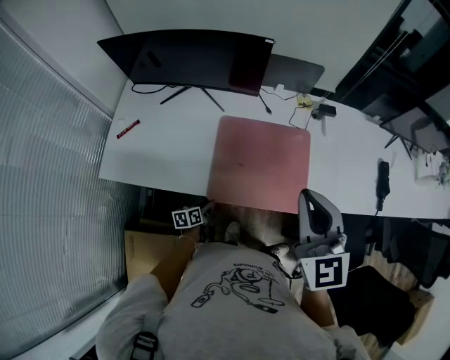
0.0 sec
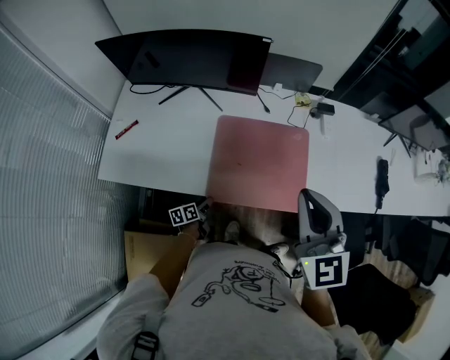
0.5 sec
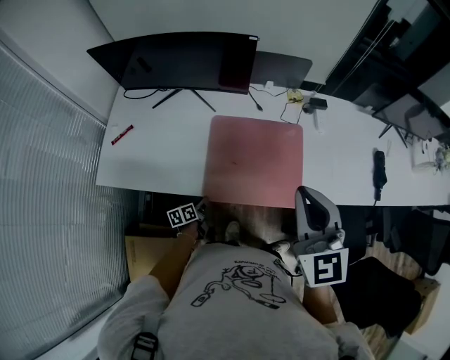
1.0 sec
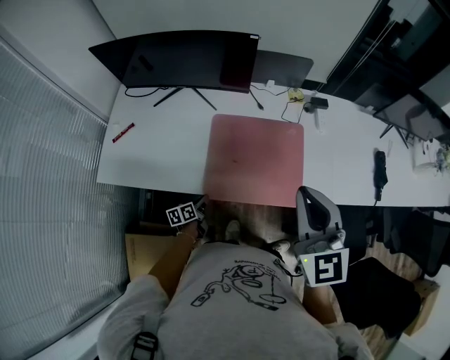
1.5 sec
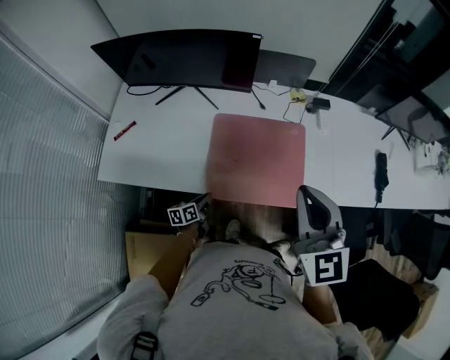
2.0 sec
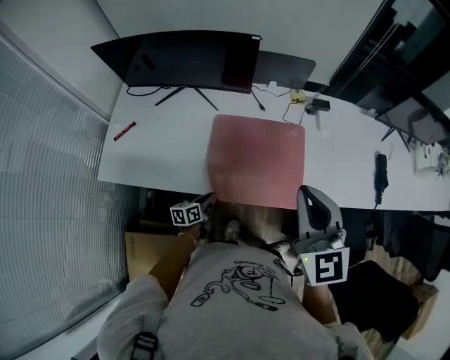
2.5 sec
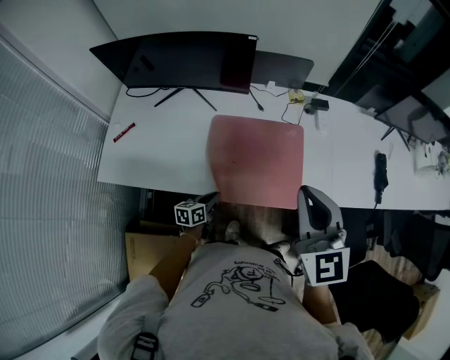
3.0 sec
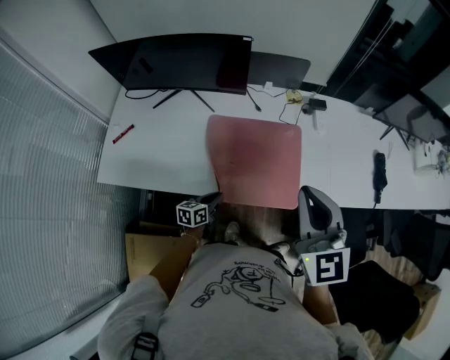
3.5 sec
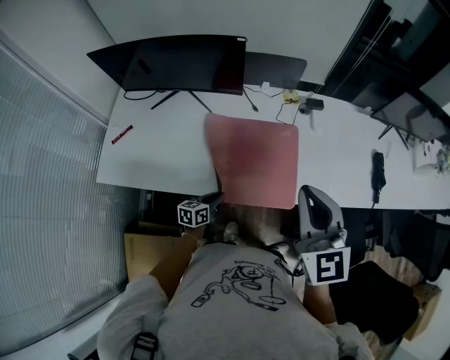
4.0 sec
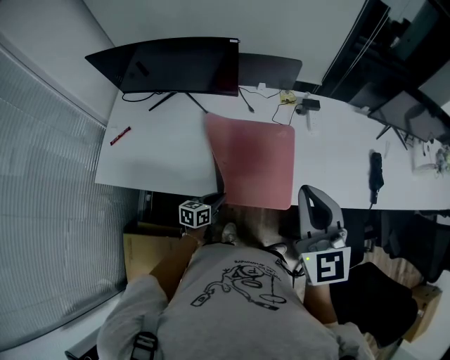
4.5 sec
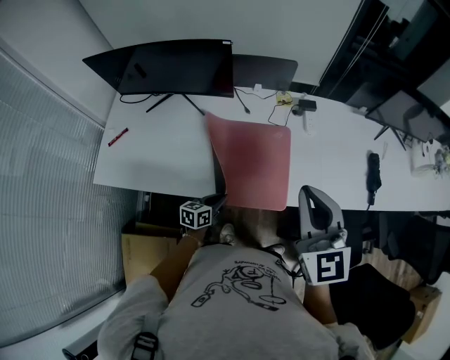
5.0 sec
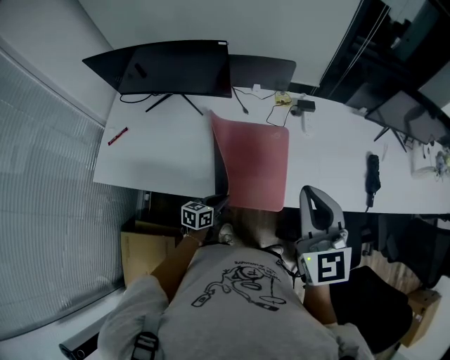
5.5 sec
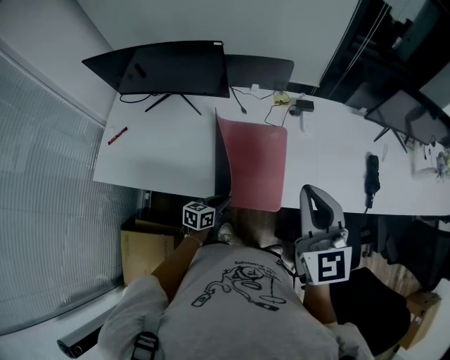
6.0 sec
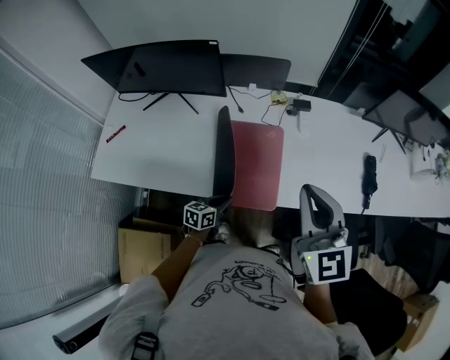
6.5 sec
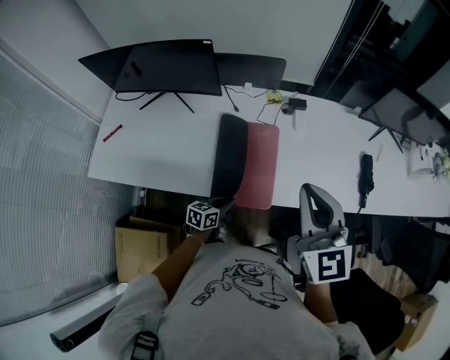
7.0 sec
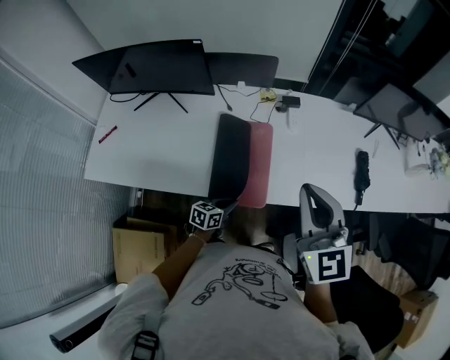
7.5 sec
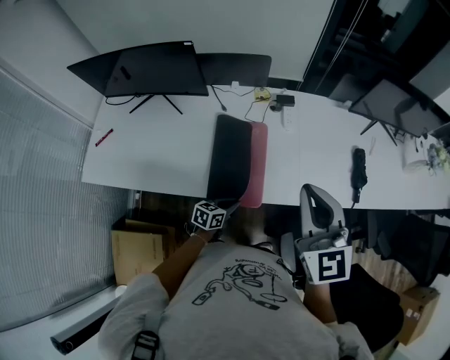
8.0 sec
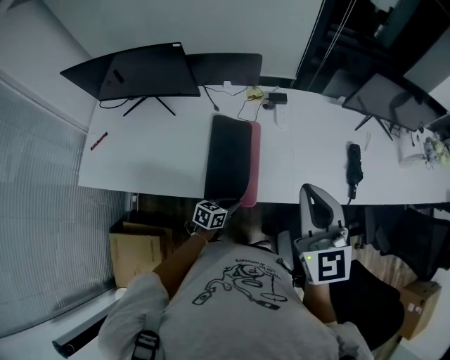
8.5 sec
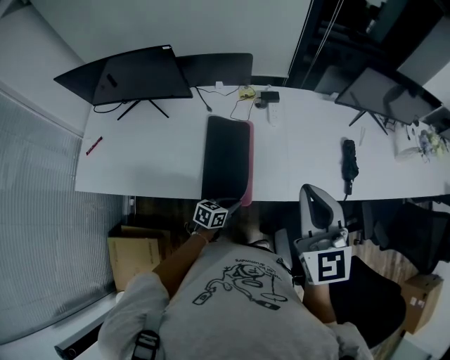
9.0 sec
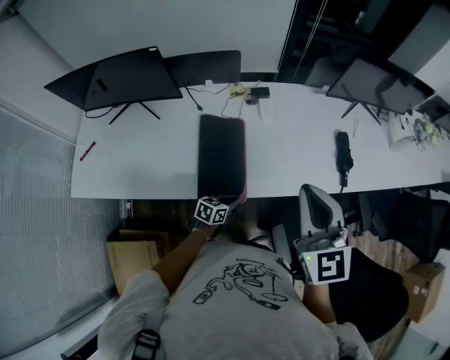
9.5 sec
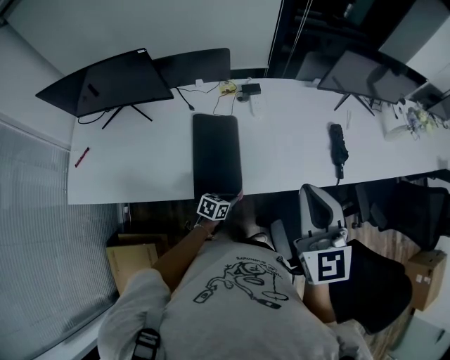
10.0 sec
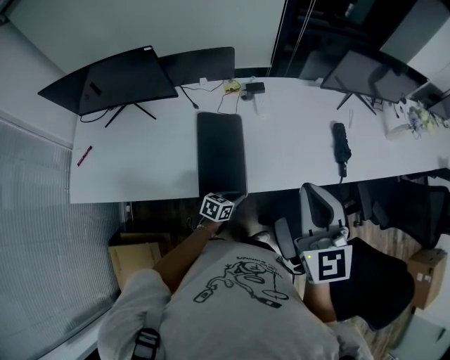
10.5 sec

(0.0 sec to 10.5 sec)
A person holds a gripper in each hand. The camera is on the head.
0.0 sec - 2.0 sec: The left gripper closes its fingers.
2.0 sec - 4.0 sec: The right gripper is displaced to the right by some 5 cm. The left gripper moves to the right and upward, approximately 10 cm.
4.0 sec - 6.5 sec: The grippers both shift to the right by roughly 10 cm.
6.5 sec - 8.5 sec: The left gripper heads to the right, covering about 15 cm, while the right gripper is displaced to the right by roughly 10 cm.

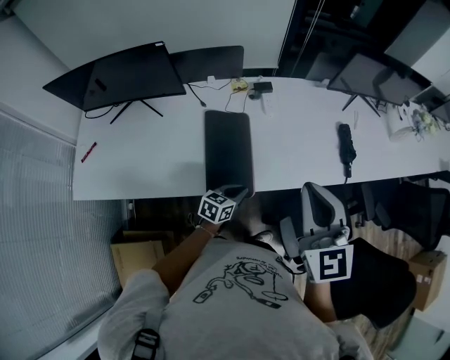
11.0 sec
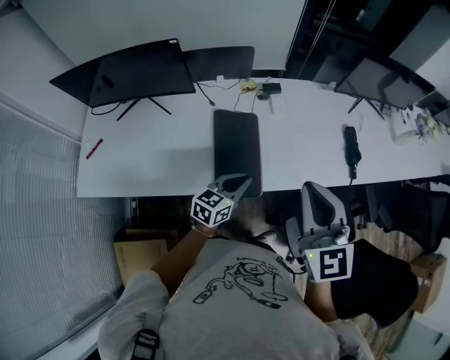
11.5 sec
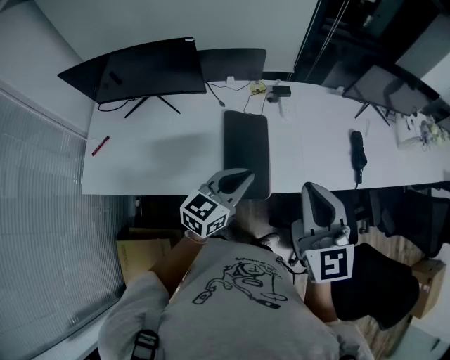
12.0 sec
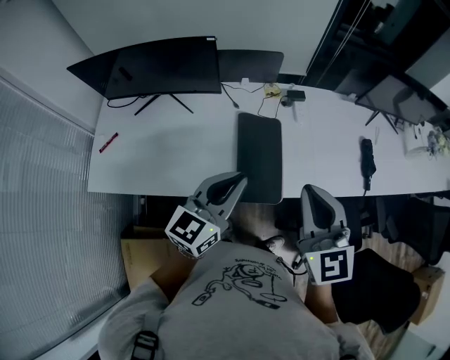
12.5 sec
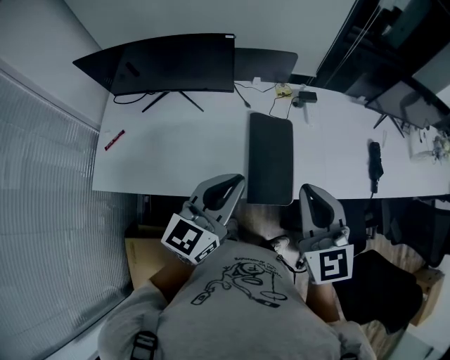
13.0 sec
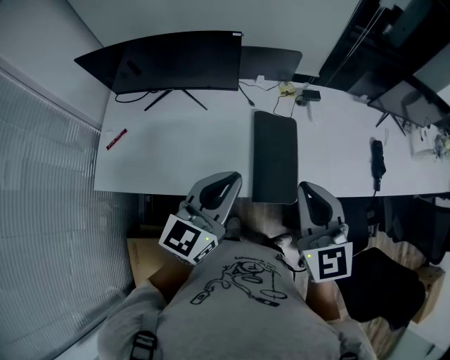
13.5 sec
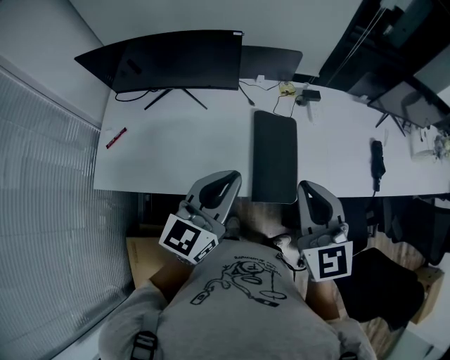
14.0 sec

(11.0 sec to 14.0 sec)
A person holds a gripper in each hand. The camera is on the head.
11.0 sec - 12.5 sec: The right gripper travels to the left by approximately 15 cm; the left gripper moves upward and to the left, about 30 cm, and changes its angle by approximately 40 degrees.
12.5 sec - 14.0 sec: The two grippers go about 10 cm to the left.

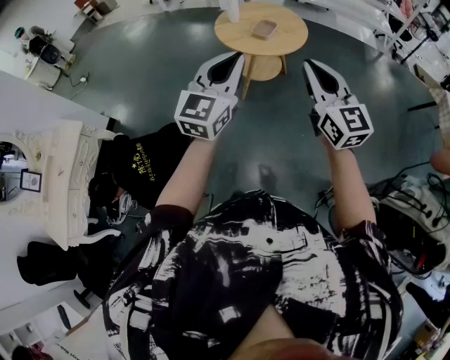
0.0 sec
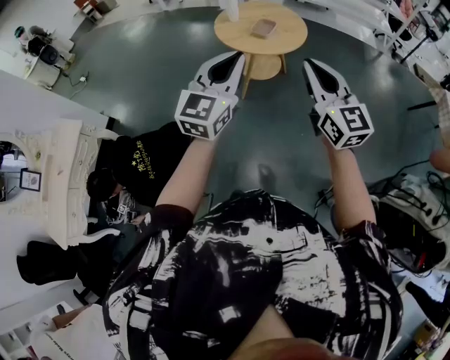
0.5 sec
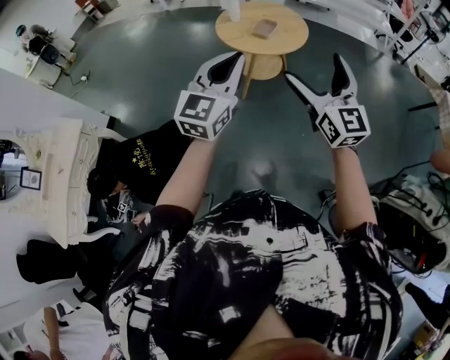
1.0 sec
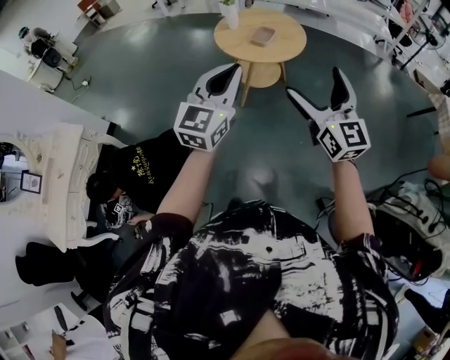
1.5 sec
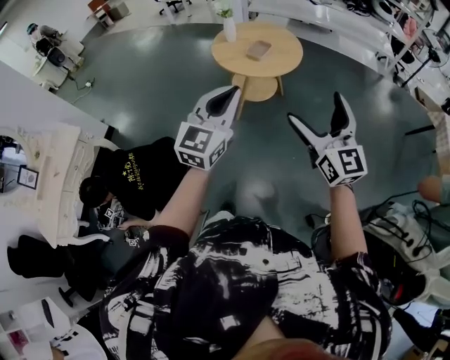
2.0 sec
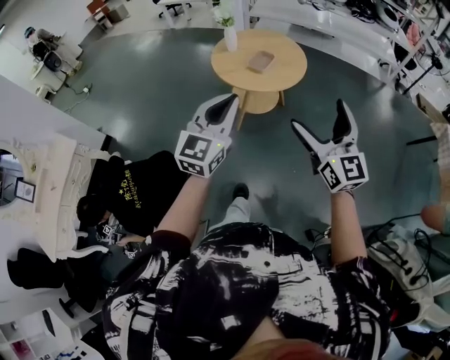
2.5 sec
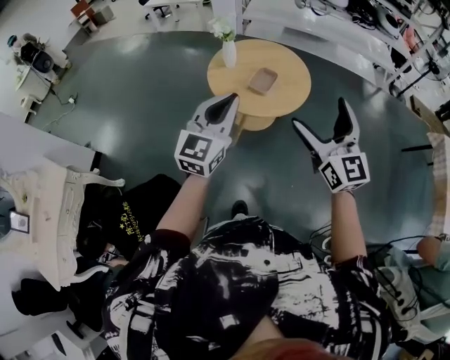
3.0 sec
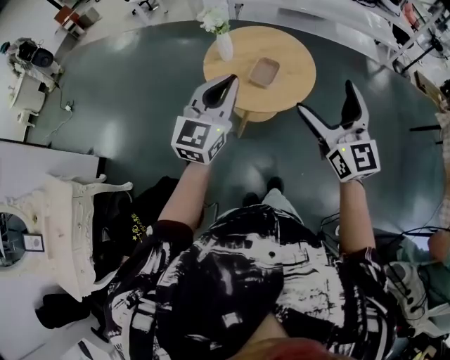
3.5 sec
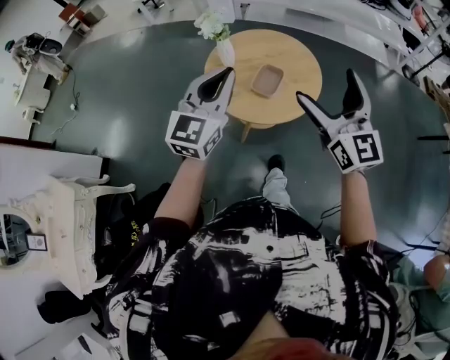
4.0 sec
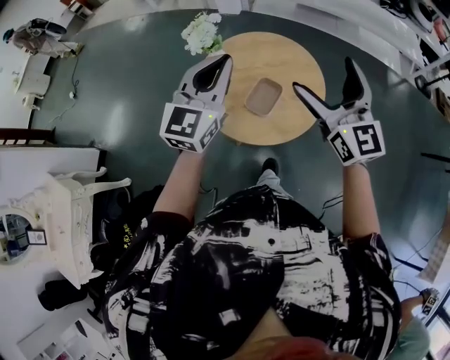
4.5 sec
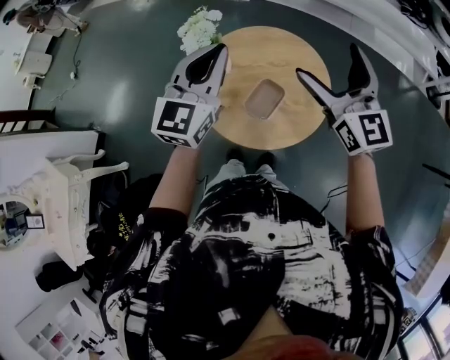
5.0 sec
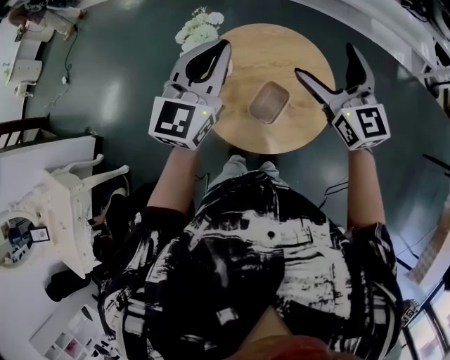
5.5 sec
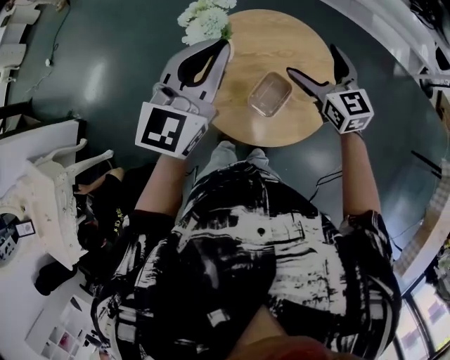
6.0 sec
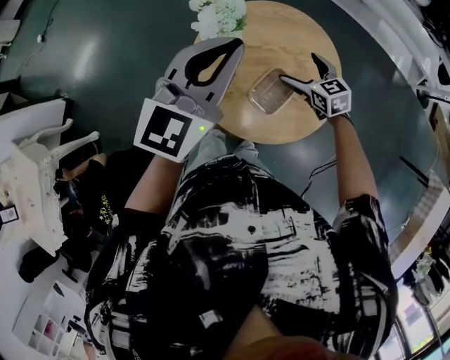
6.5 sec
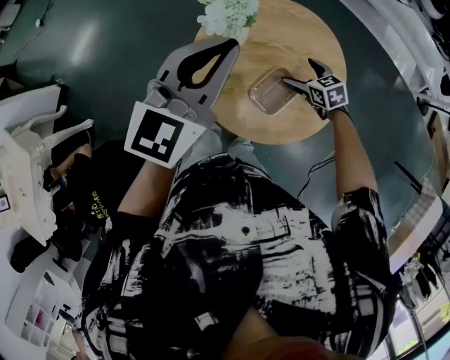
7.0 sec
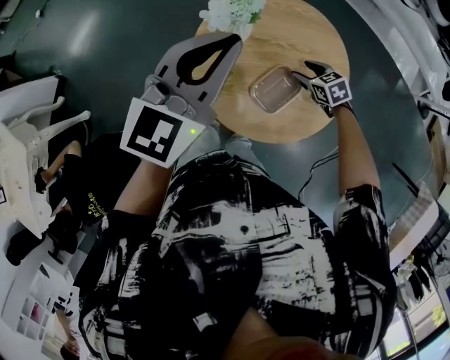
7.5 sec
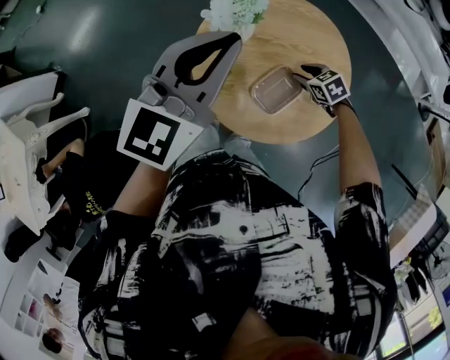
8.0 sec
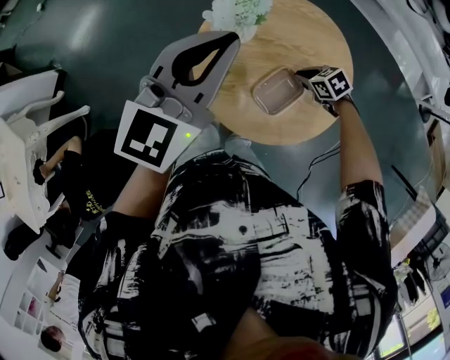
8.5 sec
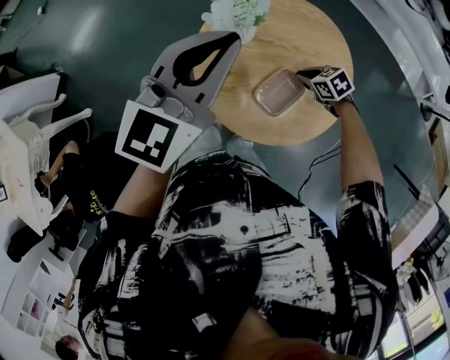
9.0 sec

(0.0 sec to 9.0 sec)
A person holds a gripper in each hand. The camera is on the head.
0.0 sec - 2.0 sec: Both grippers move to the right, roughly 10 cm. The right gripper opens.
2.0 sec - 4.5 sec: The two grippers travel together, forward, roughly 60 cm.
4.5 sec - 7.0 sec: The left gripper heads forward, to the left and downward, covering approximately 15 cm, while the right gripper travels downward and forward by about 50 cm, and tilts its fingers approximately 60 degrees downward.
7.0 sec - 9.0 sec: The right gripper changes its angle by approximately 20 degrees, and closes up.

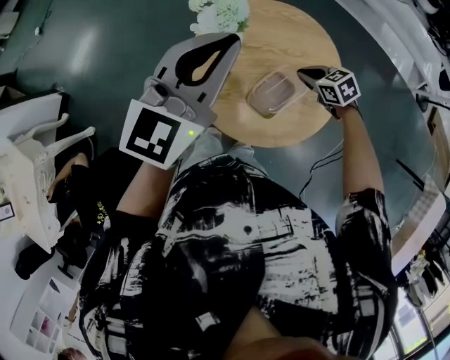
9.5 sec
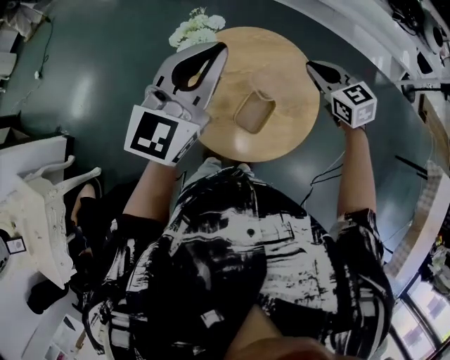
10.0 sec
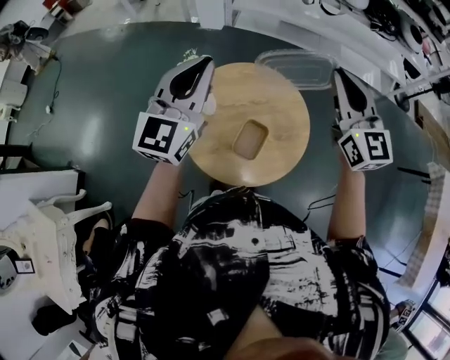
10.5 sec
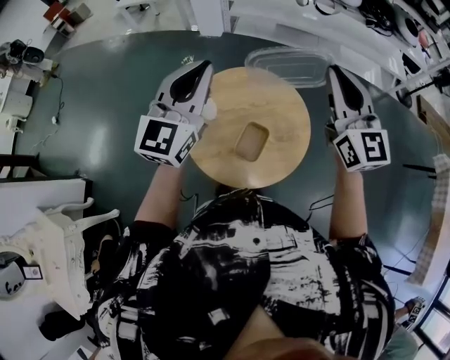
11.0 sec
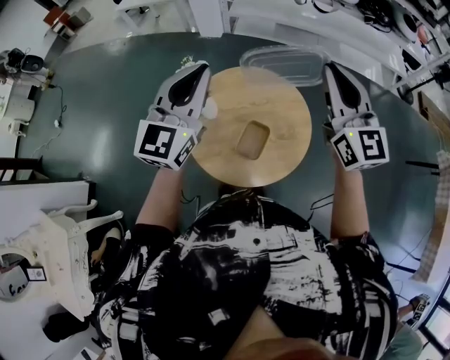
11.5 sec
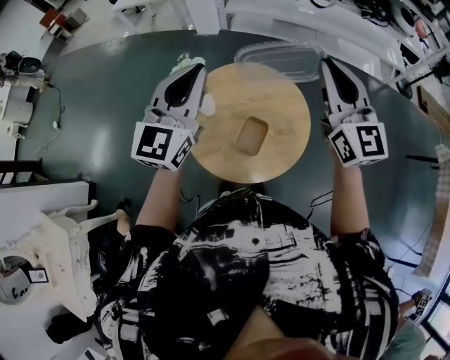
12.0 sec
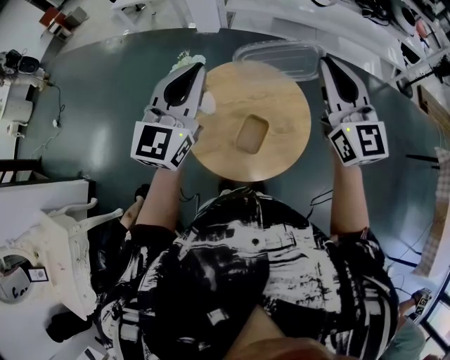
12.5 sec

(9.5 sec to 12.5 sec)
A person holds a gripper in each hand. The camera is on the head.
9.5 sec - 11.0 sec: The right gripper heads upward, covering about 40 cm, and tips its fingers upward by some 60 degrees, while the left gripper goes some 10 cm upward.
11.0 sec - 12.5 sec: The grippers move only a little.

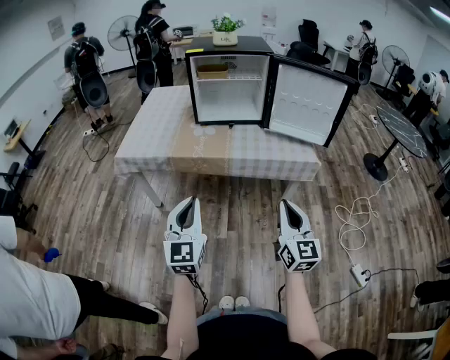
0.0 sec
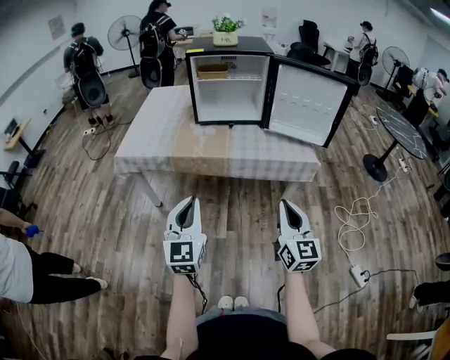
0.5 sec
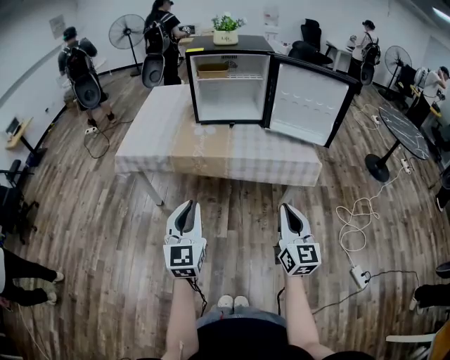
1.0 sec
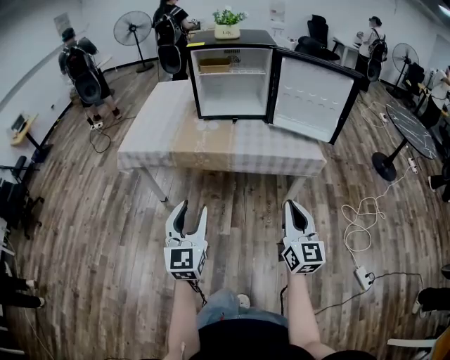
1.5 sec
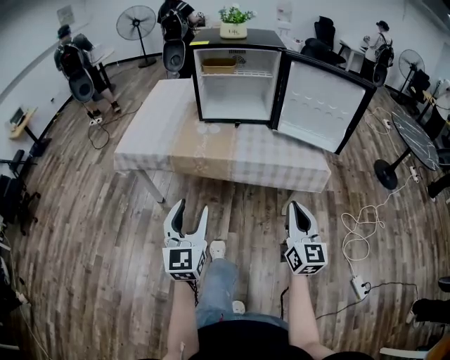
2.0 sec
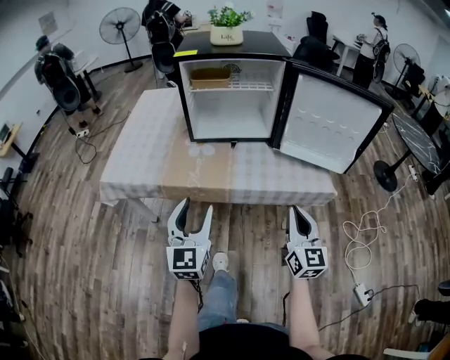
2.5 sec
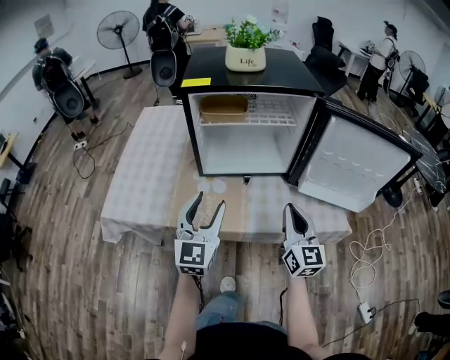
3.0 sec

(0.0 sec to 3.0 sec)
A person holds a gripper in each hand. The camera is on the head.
0.0 sec - 1.5 sec: The left gripper opens.
1.5 sec - 3.0 sec: Both grippers are carried forward, approximately 40 cm.
